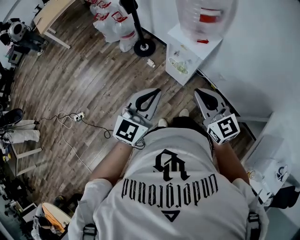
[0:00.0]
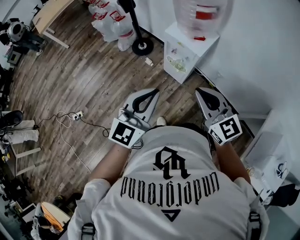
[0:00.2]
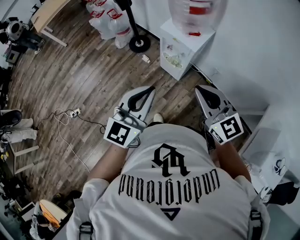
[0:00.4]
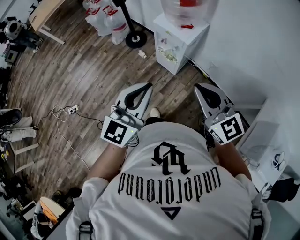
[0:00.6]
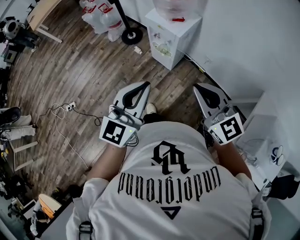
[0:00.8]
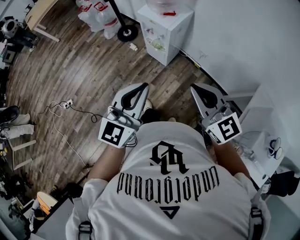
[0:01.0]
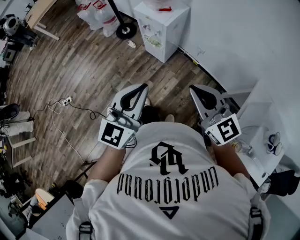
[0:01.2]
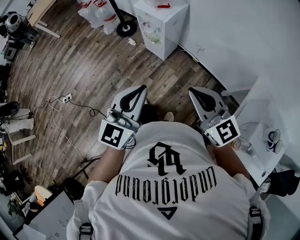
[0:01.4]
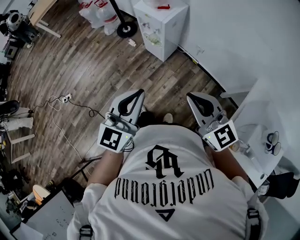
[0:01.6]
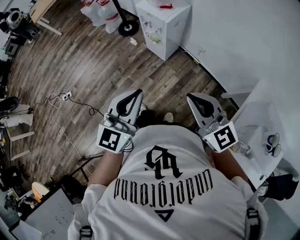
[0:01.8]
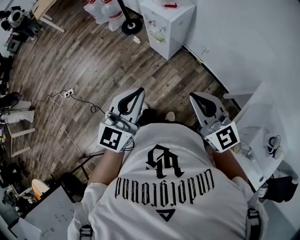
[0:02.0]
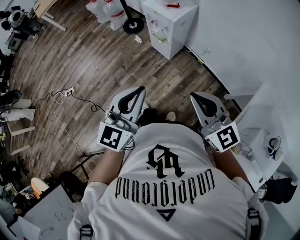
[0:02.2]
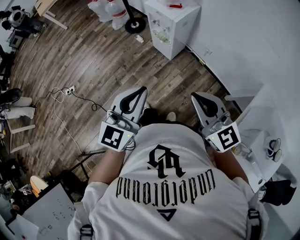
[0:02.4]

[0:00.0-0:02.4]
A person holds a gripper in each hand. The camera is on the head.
0:00.0 to 0:01.2: The grippers both shift backward and to the right by roughly 25 cm.
0:01.2 to 0:02.4: The grippers move only a little.

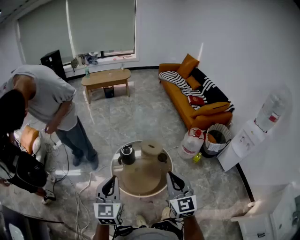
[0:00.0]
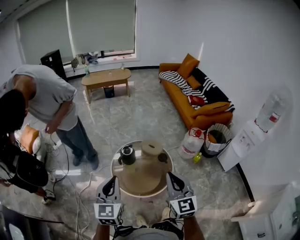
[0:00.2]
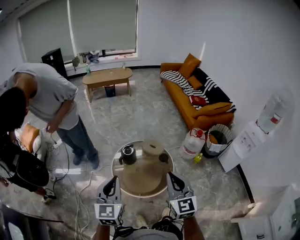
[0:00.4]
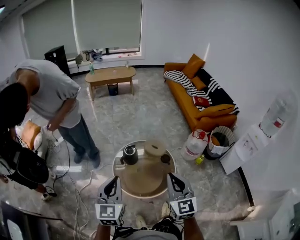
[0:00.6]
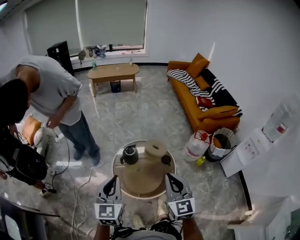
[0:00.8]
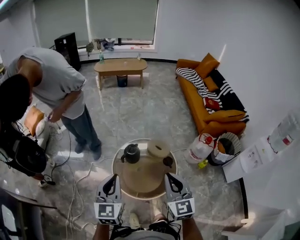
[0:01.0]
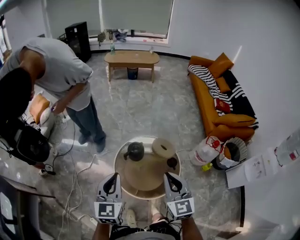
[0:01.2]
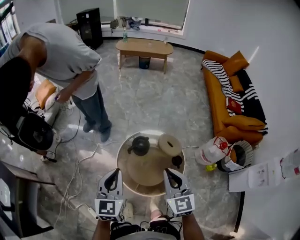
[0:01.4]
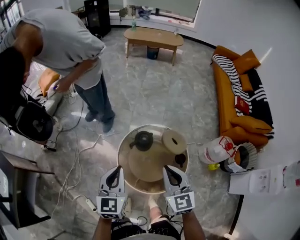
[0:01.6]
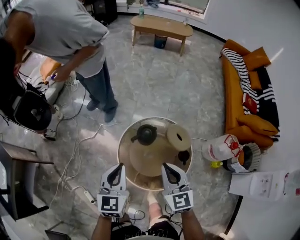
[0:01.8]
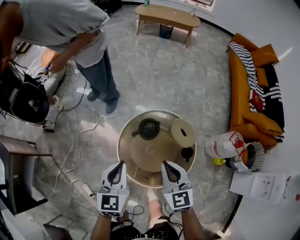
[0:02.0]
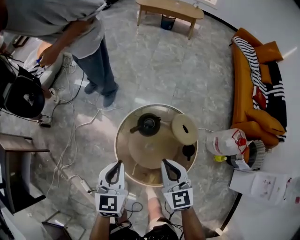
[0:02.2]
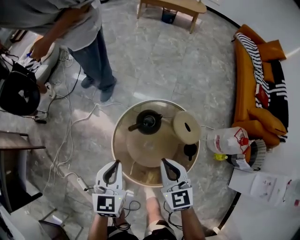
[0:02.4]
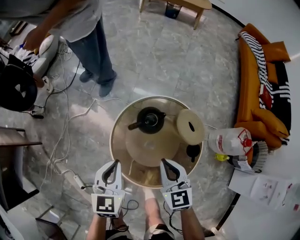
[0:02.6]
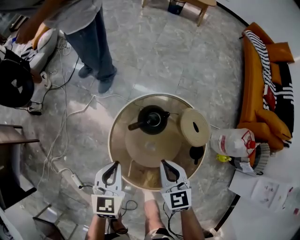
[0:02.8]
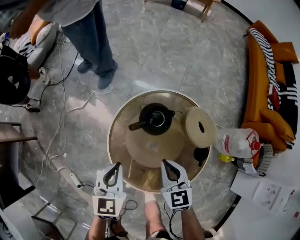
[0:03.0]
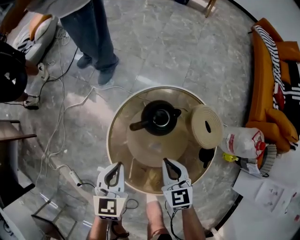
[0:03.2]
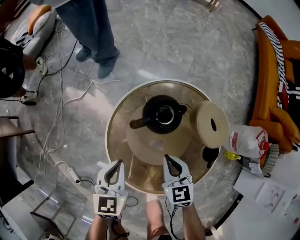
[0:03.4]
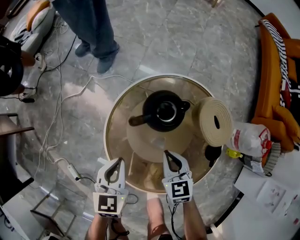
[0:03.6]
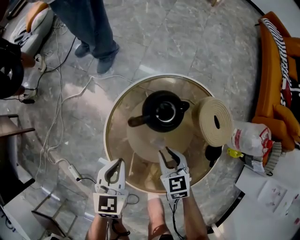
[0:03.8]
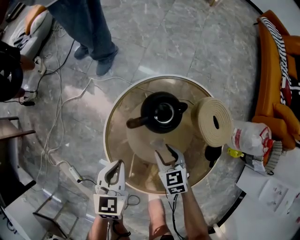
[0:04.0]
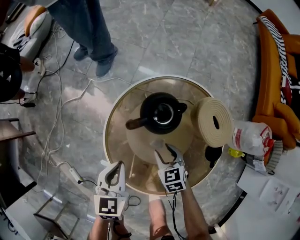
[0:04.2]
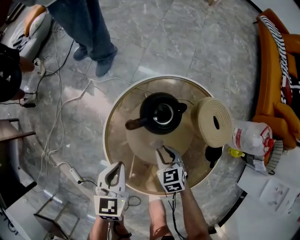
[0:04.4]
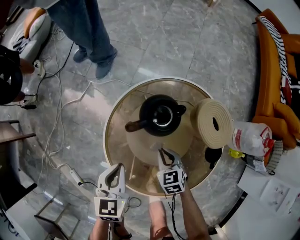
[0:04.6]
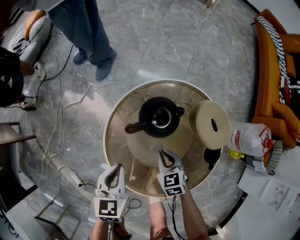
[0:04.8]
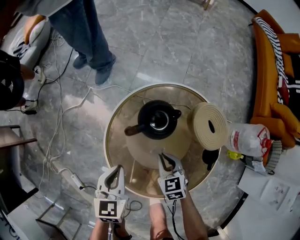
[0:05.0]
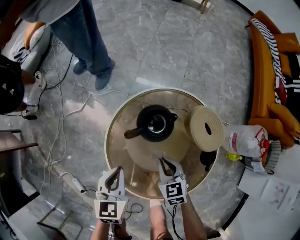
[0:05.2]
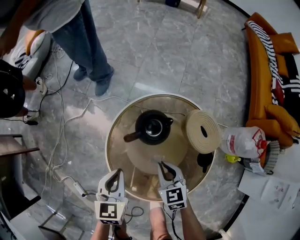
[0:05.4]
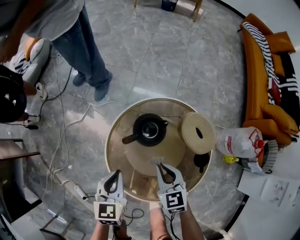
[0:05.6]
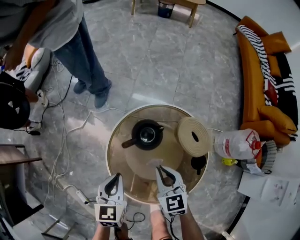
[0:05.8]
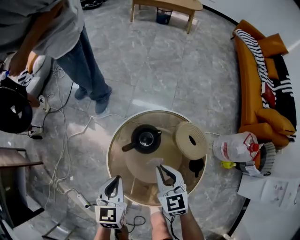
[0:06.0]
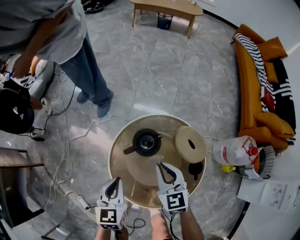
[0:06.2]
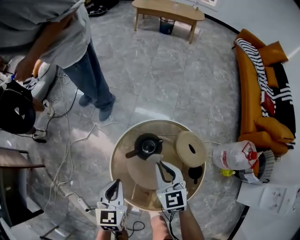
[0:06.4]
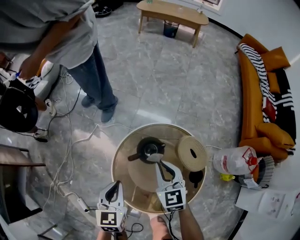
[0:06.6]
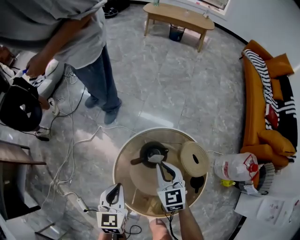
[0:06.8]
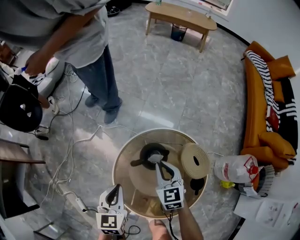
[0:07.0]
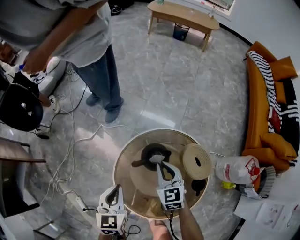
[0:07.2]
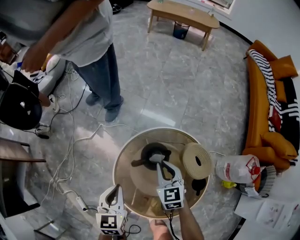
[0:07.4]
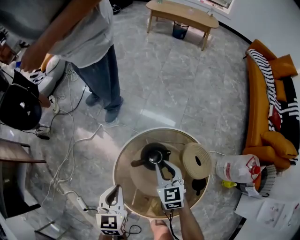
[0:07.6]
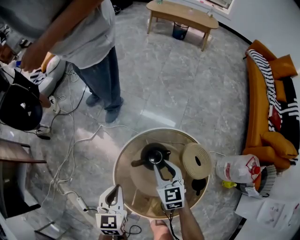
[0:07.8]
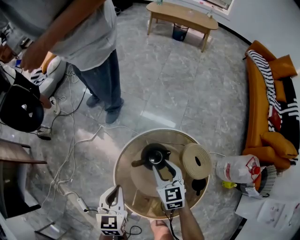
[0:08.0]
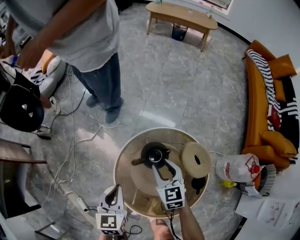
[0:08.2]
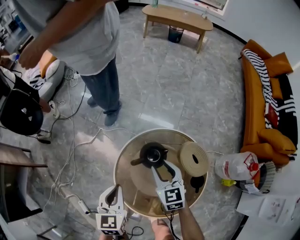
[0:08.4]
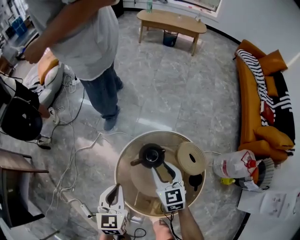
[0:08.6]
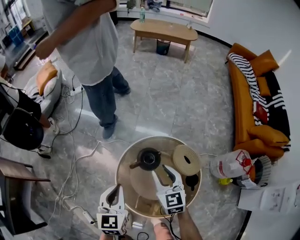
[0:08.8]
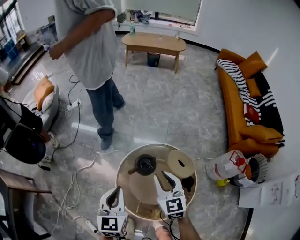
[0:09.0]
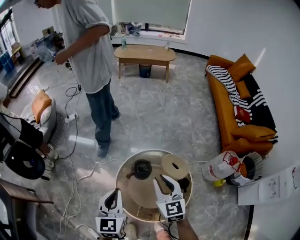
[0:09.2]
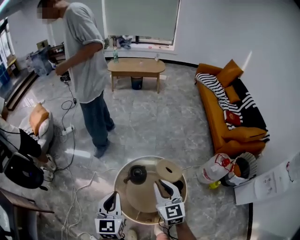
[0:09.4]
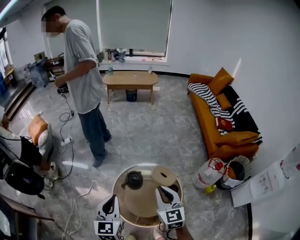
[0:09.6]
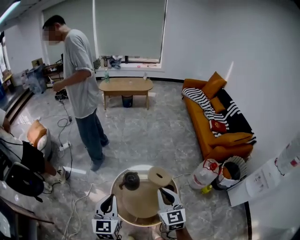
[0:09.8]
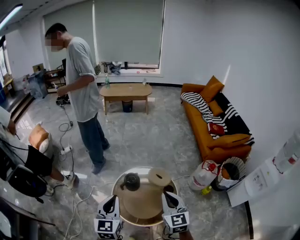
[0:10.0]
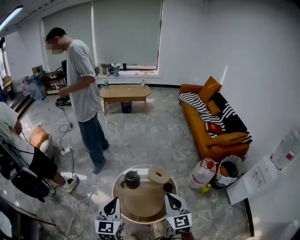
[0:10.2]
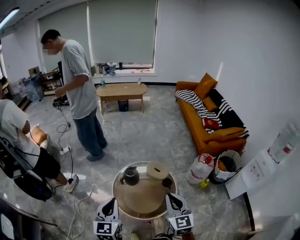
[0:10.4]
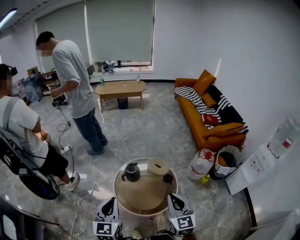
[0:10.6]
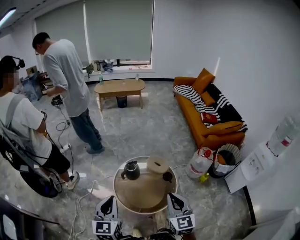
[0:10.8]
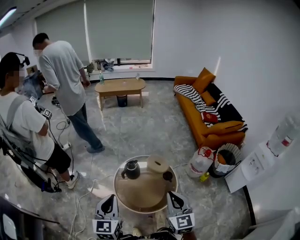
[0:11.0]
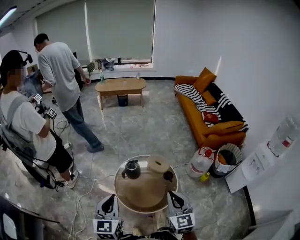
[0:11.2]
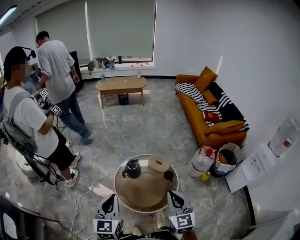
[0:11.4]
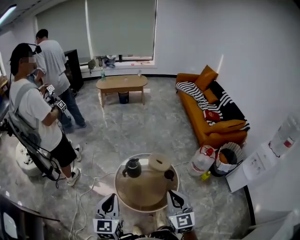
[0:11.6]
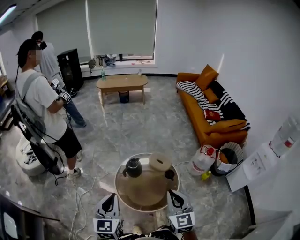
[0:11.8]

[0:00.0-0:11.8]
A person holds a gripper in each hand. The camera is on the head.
0:00.0 to 0:01.4: The two grippers go approximately 20 cm forward and downward. The right gripper turns by some 20 degrees.
0:01.4 to 0:03.0: The two grippers go approximately 40 cm downward. The right gripper rotates approximately 30 degrees. The left gripper turns by approximately 20 degrees.
0:03.0 to 0:04.4: The left gripper travels downward by some 10 cm. Meanwhile the right gripper shifts approximately 20 cm downward, and opens its fingers.
0:04.4 to 0:06.0: The right gripper heads upward, covering roughly 25 cm, turns by roughly 20 degrees, and closes its fingers. The left gripper heads upward, covering approximately 10 cm.
0:06.0 to 0:07.4: The right gripper heads forward, covering some 10 cm.
0:07.4 to 0:08.8: Both grippers travel together upward, some 10 cm. The right gripper opens.
0:08.8 to 0:10.4: The left gripper shifts approximately 35 cm upward and backward, and changes its angle by approximately 20 degrees; the right gripper heads backward and upward, covering some 40 cm, changes its angle by approximately 30 degrees, and closes its fingers.
0:10.4 to 0:11.8: The grippers move only a little.

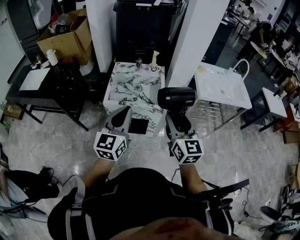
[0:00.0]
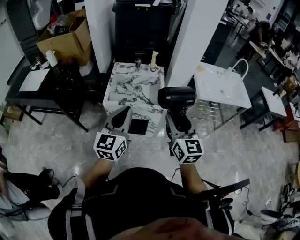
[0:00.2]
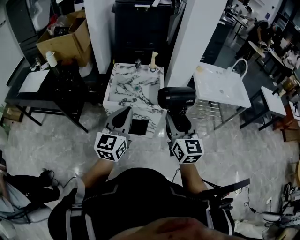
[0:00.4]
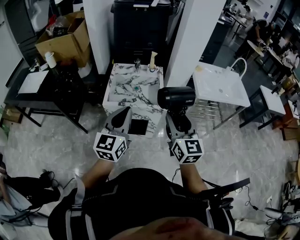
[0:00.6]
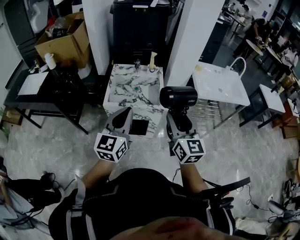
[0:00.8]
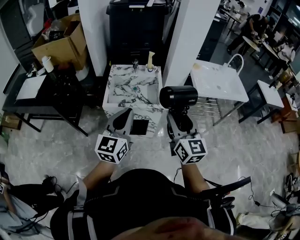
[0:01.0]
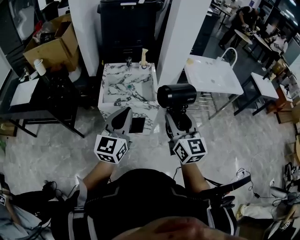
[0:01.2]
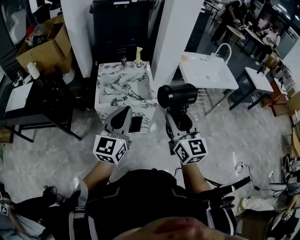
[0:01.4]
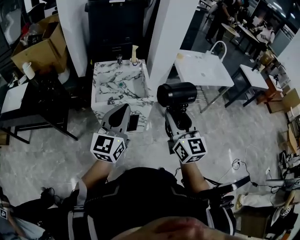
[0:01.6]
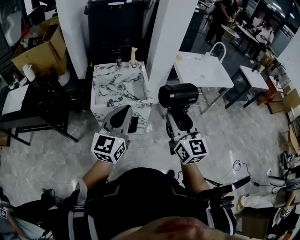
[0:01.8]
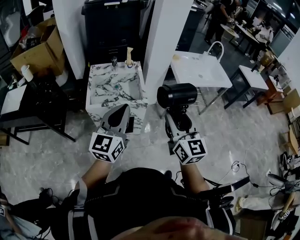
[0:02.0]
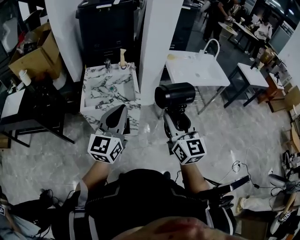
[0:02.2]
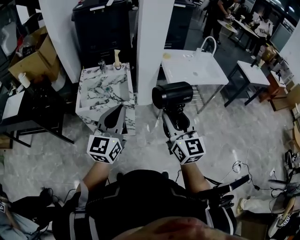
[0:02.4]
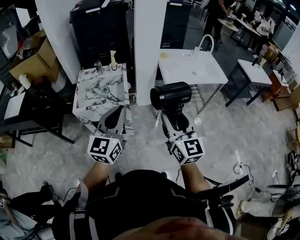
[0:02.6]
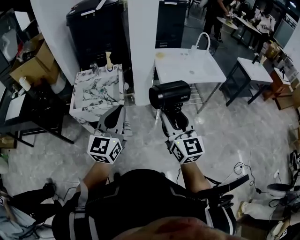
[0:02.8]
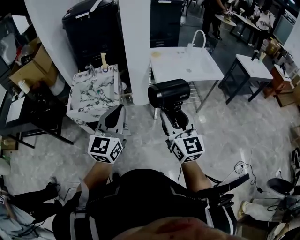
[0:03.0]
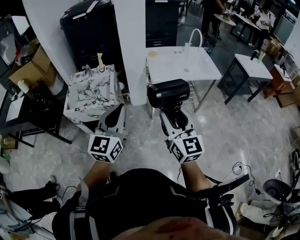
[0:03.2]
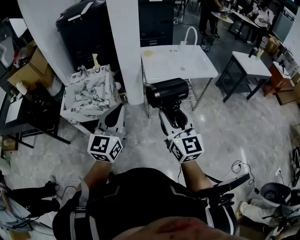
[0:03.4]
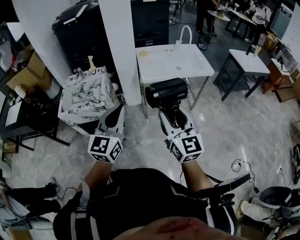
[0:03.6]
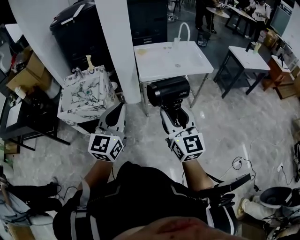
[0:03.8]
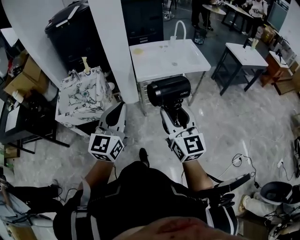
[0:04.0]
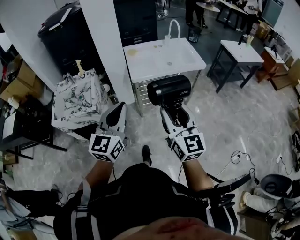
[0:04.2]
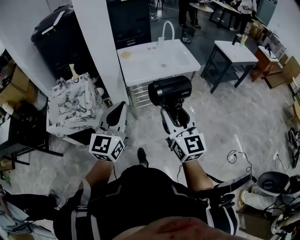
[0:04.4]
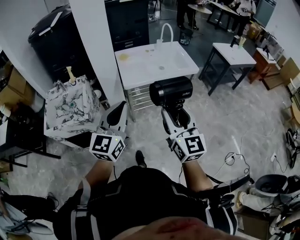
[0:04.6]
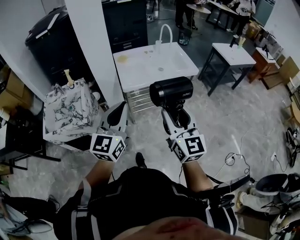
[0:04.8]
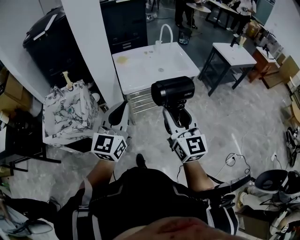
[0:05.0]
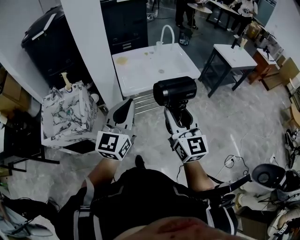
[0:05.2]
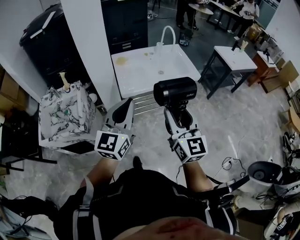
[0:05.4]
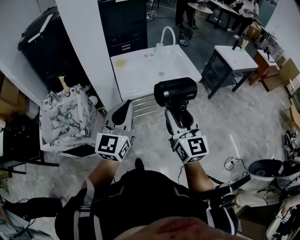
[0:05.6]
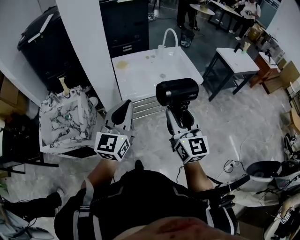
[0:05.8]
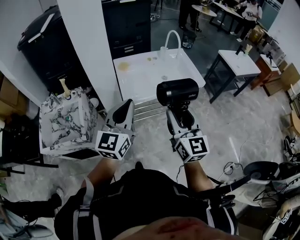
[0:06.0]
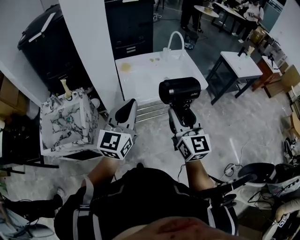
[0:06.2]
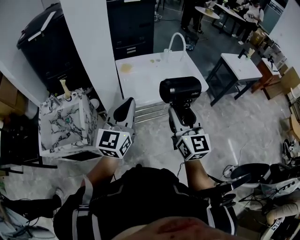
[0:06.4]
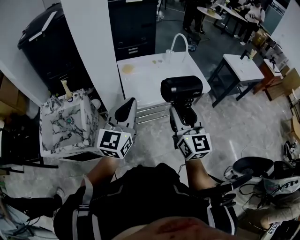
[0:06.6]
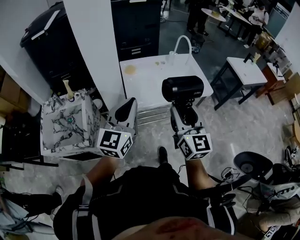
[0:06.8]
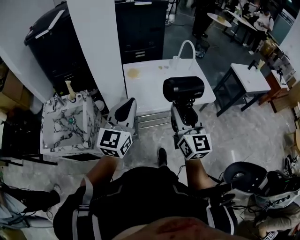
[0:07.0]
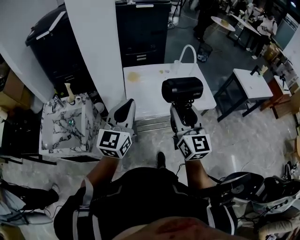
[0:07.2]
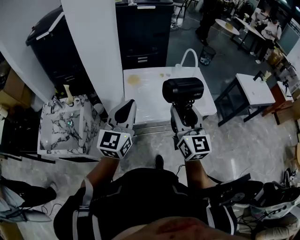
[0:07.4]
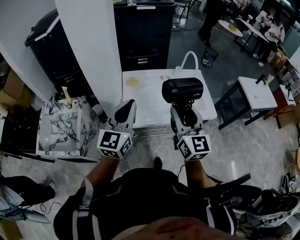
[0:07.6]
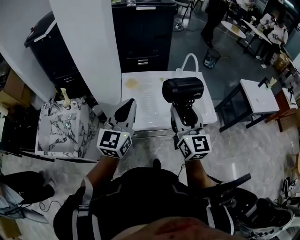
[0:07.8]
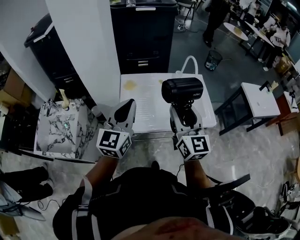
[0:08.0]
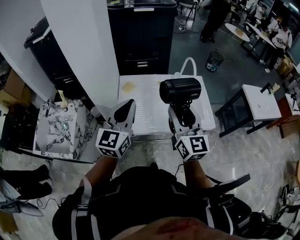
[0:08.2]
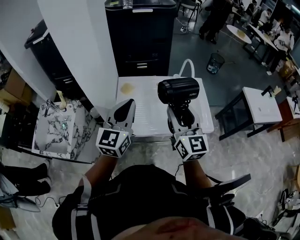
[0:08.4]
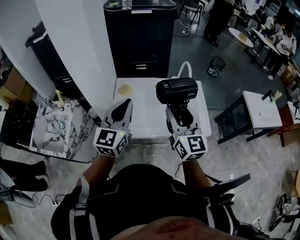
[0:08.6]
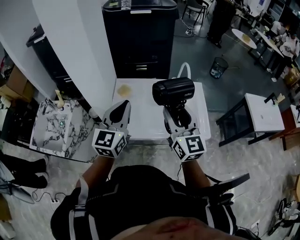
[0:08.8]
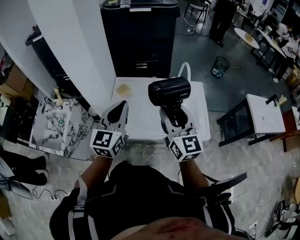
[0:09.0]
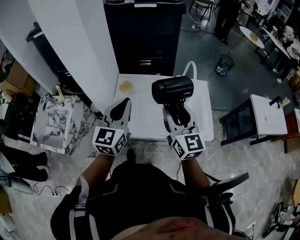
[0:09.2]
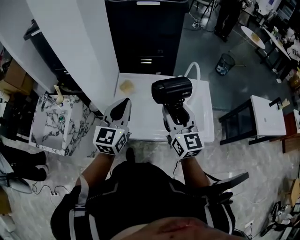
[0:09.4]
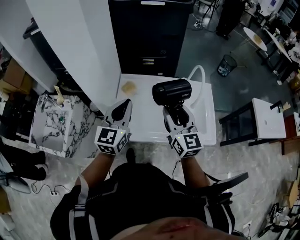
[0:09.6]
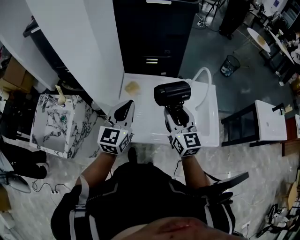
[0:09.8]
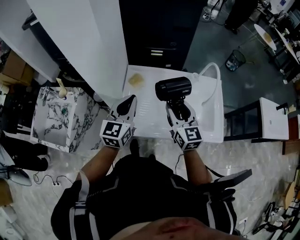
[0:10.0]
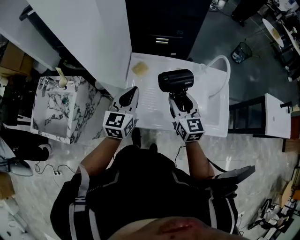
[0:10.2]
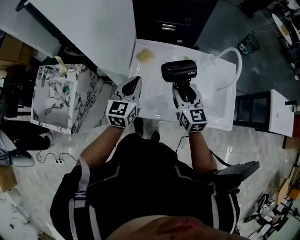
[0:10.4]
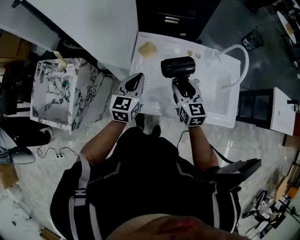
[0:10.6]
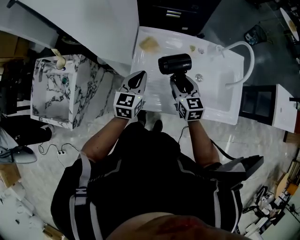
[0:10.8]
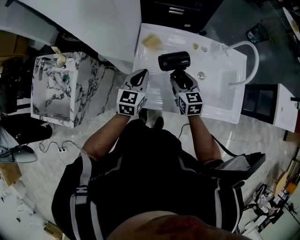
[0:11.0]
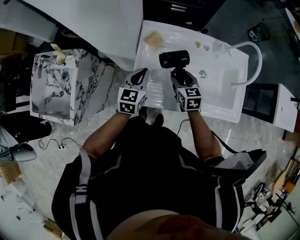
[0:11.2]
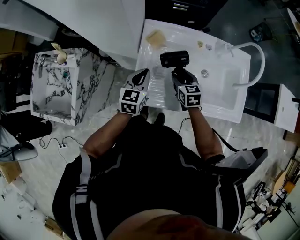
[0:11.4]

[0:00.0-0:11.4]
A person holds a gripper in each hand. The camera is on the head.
0:00.0 to 0:01.4: The grippers stay close to where they were, moving slightly.
0:01.4 to 0:02.8: The grippers both shift to the right by approximately 25 cm.
0:02.8 to 0:04.2: Both grippers travel together to the right, some 20 cm.
0:04.2 to 0:05.6: The two grippers go about 15 cm forward.
0:05.6 to 0:07.2: Both grippers travel together forward, approximately 15 cm.
0:07.2 to 0:08.6: Both grippers move forward and to the right, about 20 cm.
0:08.6 to 0:10.0: Both grippers travel together forward, downward and to the left, some 15 cm.
0:10.0 to 0:11.4: Both grippers move downward, about 20 cm. The right gripper points its fingers roughly 30 degrees further downward.
